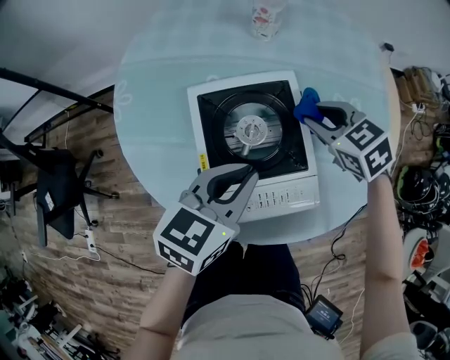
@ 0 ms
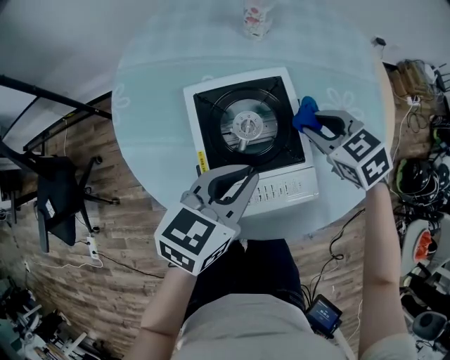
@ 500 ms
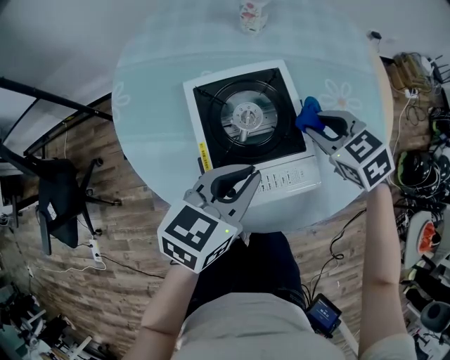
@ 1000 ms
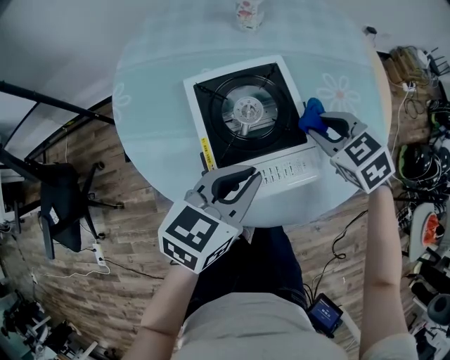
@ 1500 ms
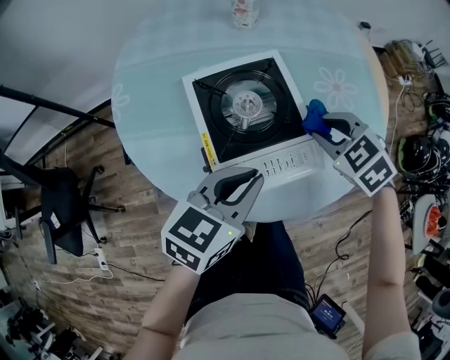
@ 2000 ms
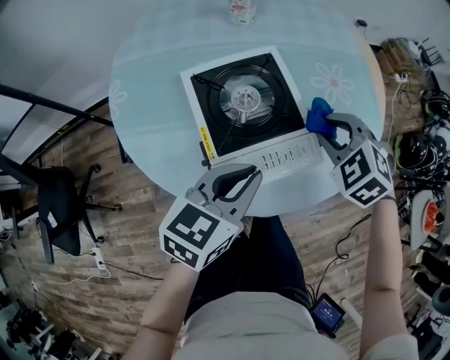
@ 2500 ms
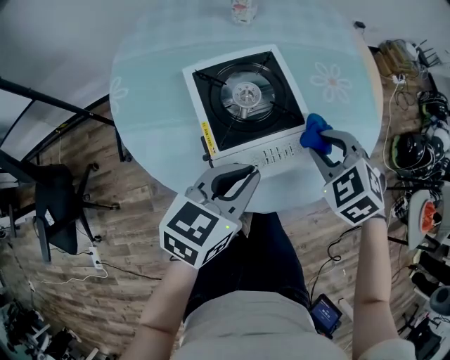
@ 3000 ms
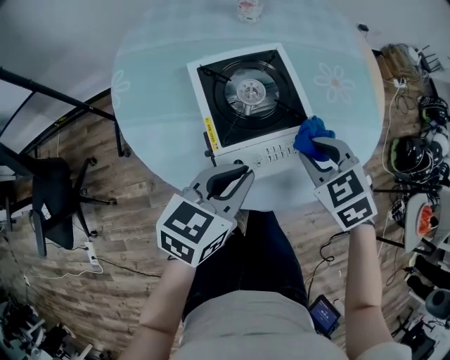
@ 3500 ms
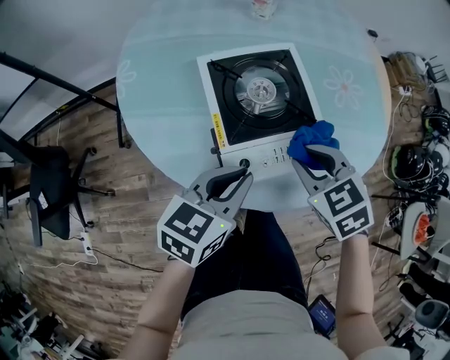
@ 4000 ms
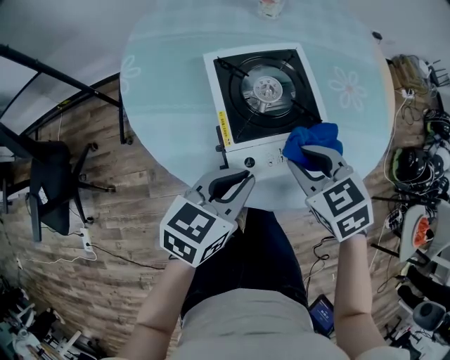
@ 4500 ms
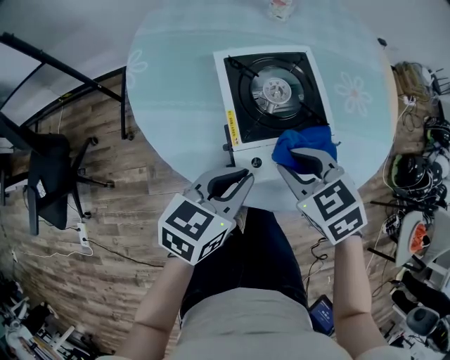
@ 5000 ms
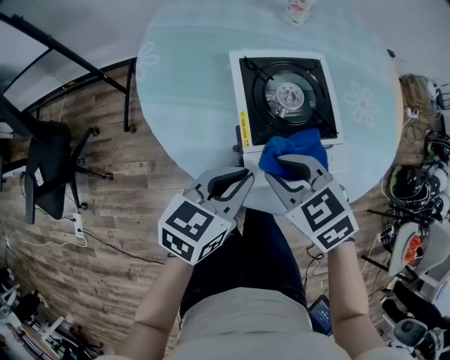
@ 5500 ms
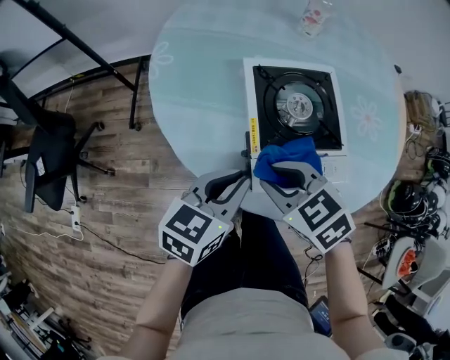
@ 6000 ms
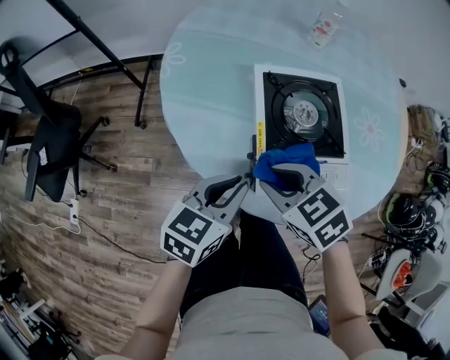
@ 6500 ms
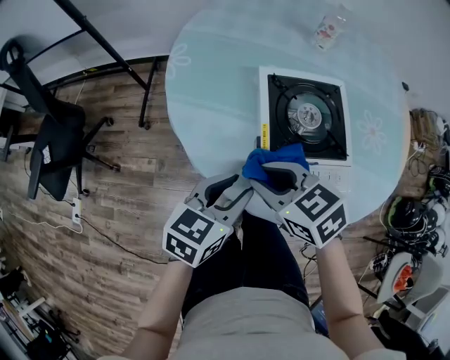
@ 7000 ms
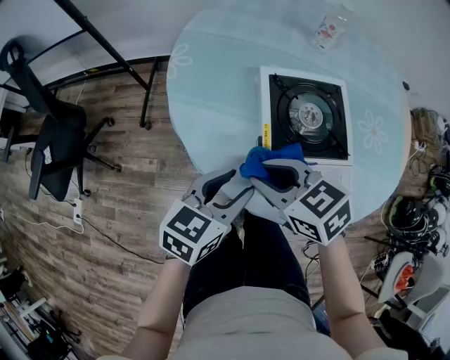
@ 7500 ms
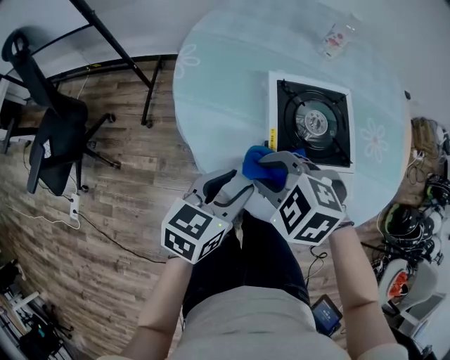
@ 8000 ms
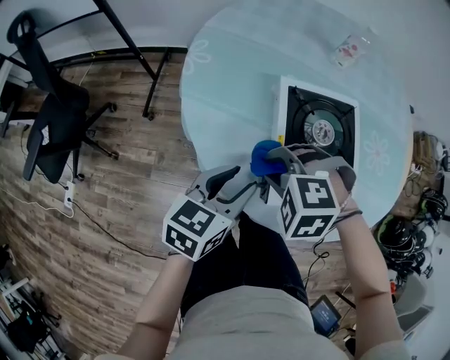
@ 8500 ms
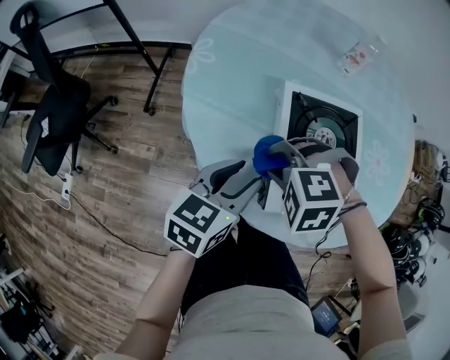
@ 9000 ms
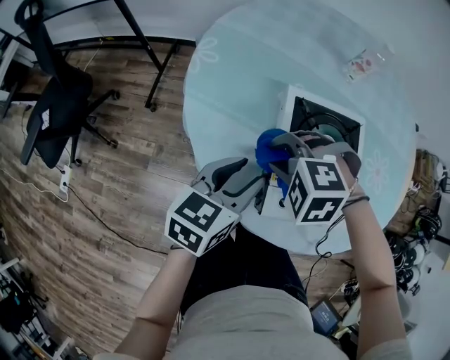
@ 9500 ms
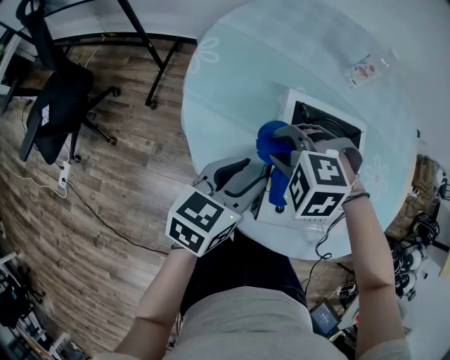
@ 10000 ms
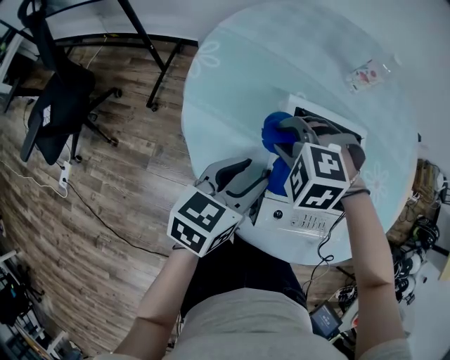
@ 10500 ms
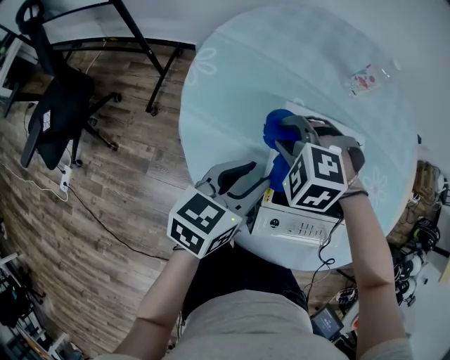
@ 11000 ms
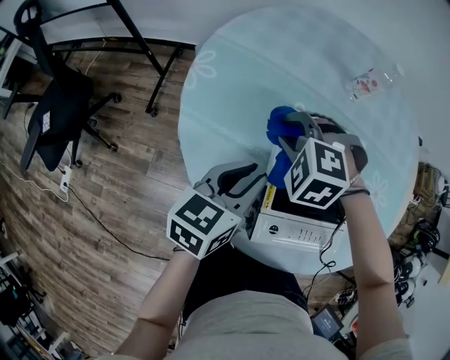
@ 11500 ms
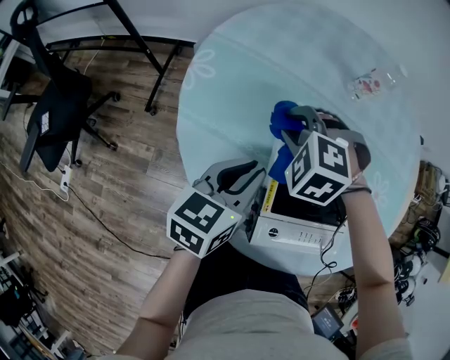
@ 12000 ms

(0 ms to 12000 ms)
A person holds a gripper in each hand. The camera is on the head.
0 ms - 2000 ms: The grippers both shift backward by approximately 10 cm.
2000 ms - 4000 ms: The right gripper goes about 10 cm backward and to the left. The left gripper moves about 5 cm.
4000 ms - 6000 ms: The right gripper moves to the left, some 15 cm, and rotates approximately 20 degrees, while the left gripper is displaced to the left by approximately 5 cm.
6000 ms - 8000 ms: The left gripper opens its fingers. Meanwhile the right gripper travels to the left by roughly 5 cm, and rotates about 30 degrees.
8000 ms - 10000 ms: Both grippers move forward, some 10 cm. The right gripper rotates roughly 30 degrees.
10000 ms - 12000 ms: The left gripper shifts about 5 cm forward, and closes up, while the right gripper moves forward, some 10 cm.

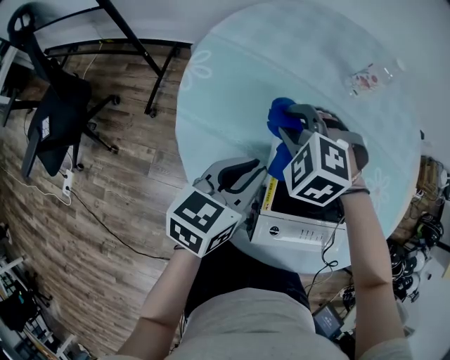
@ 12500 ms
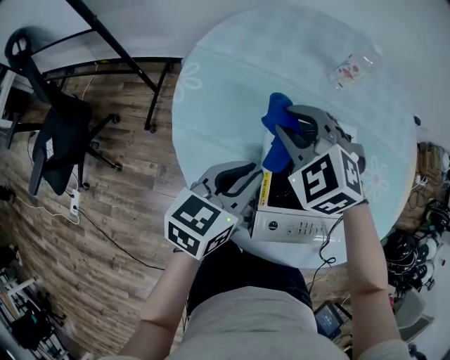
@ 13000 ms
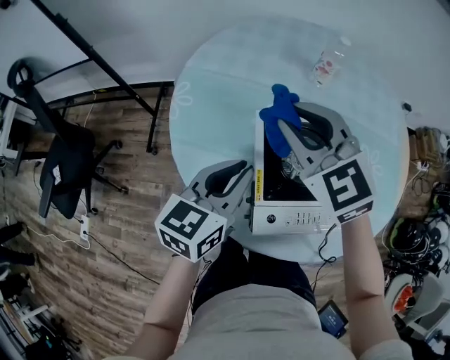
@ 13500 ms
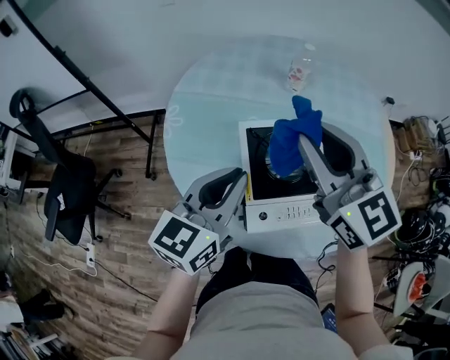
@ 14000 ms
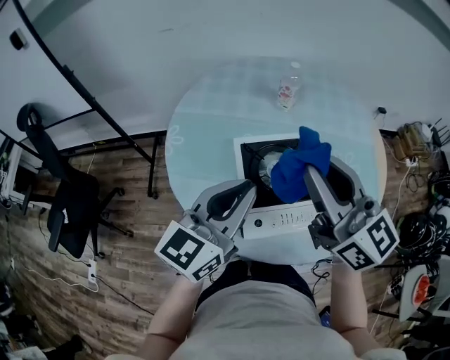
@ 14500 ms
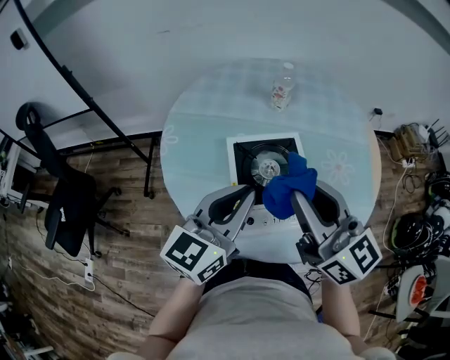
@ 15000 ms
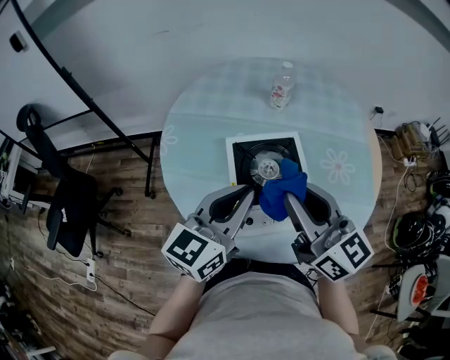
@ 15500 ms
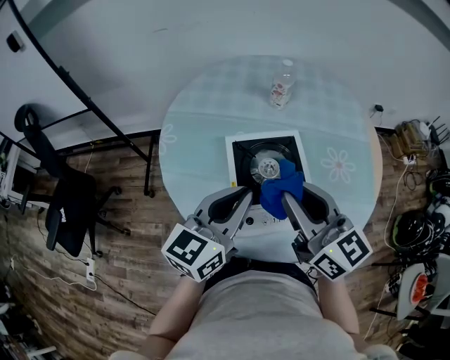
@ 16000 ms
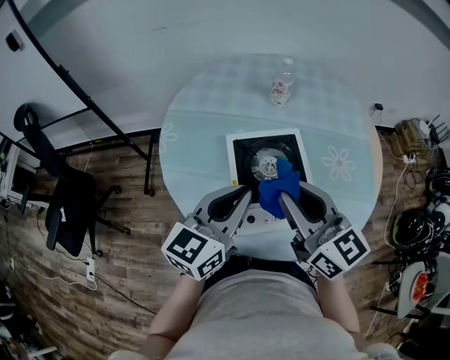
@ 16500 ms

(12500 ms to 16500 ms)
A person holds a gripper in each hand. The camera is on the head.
12500 ms - 14500 ms: The left gripper goes about 20 cm upward and backward, and changes its angle by some 30 degrees; the right gripper heads upward, backward and to the right, covering roughly 35 cm, and tips its fingers upward by roughly 70 degrees.
14500 ms - 16500 ms: The right gripper is displaced downward by roughly 10 cm.

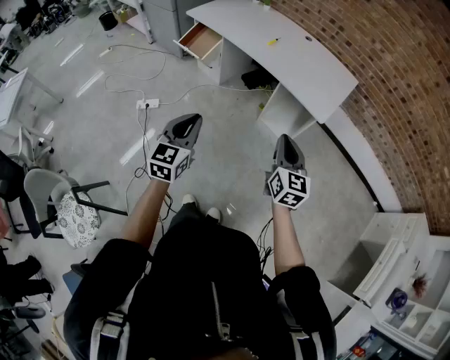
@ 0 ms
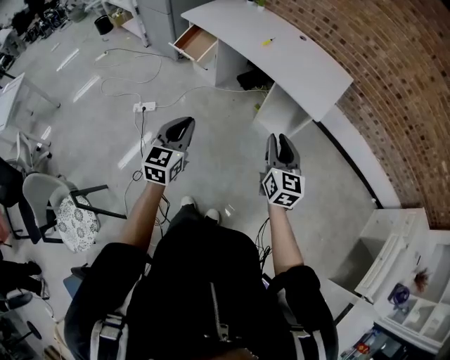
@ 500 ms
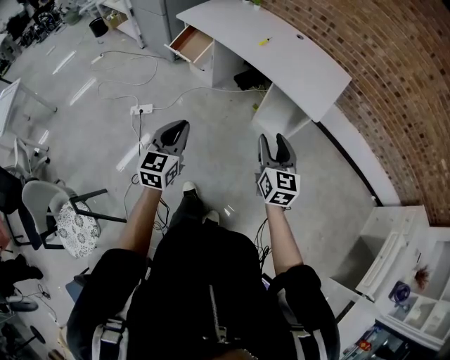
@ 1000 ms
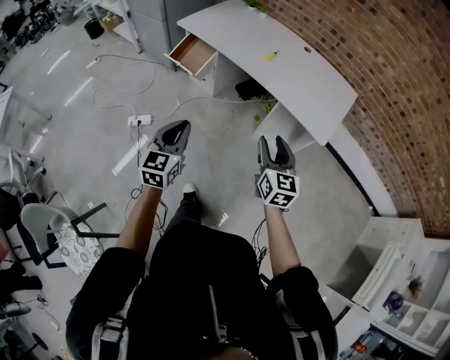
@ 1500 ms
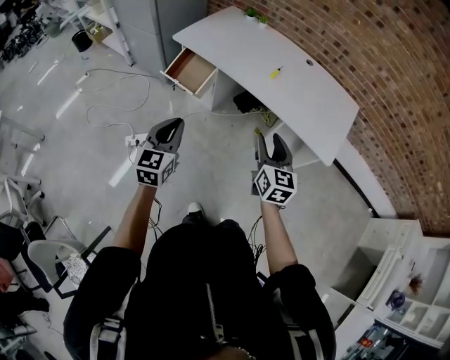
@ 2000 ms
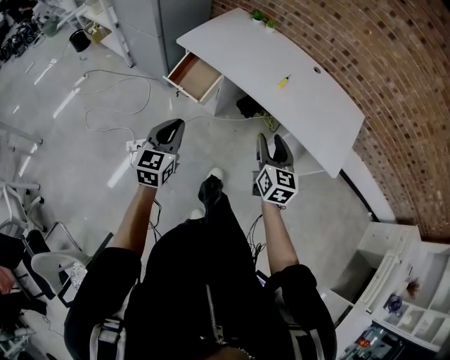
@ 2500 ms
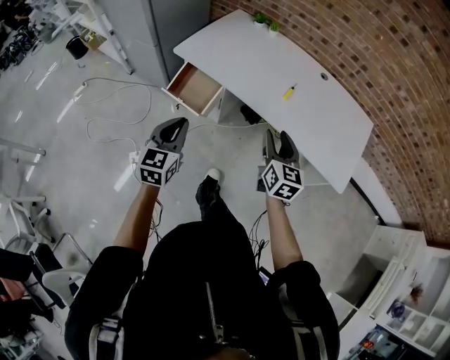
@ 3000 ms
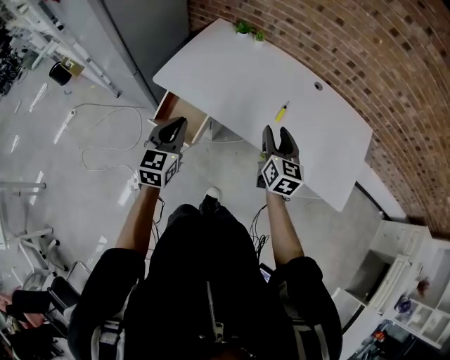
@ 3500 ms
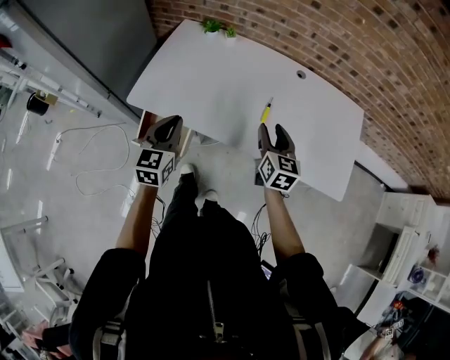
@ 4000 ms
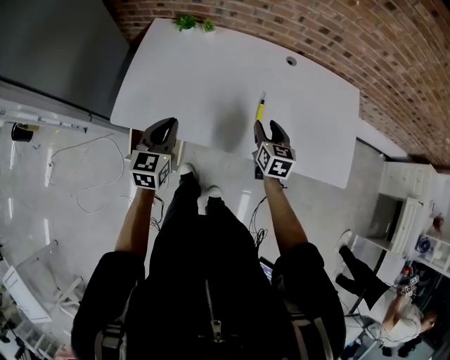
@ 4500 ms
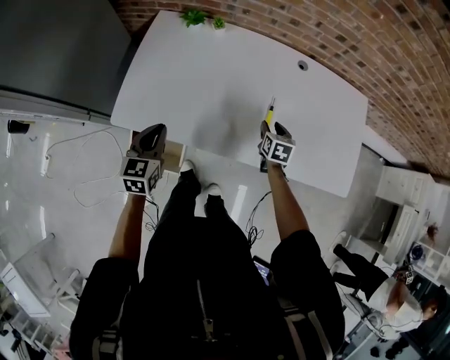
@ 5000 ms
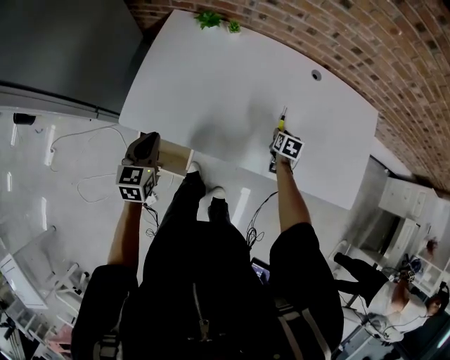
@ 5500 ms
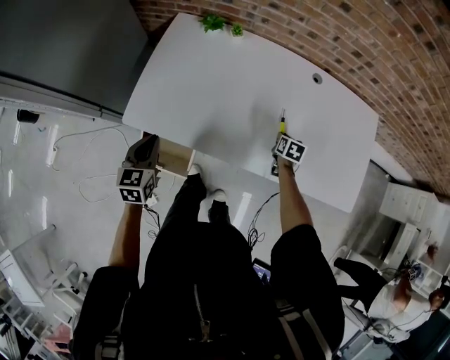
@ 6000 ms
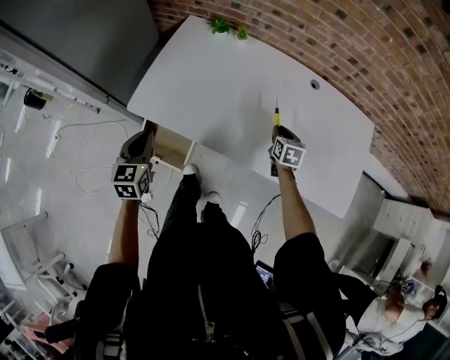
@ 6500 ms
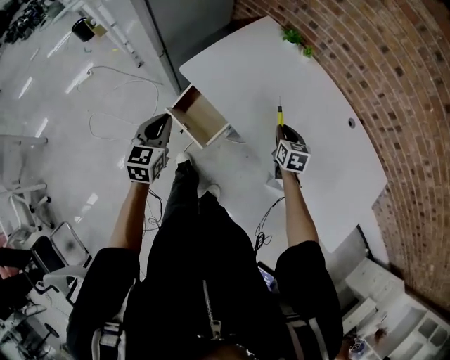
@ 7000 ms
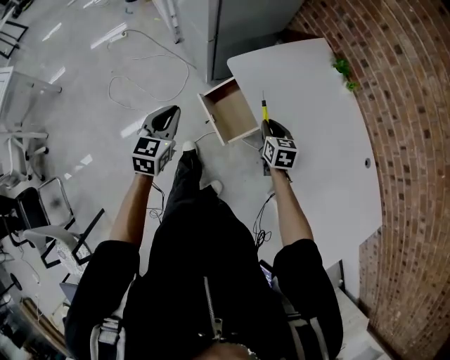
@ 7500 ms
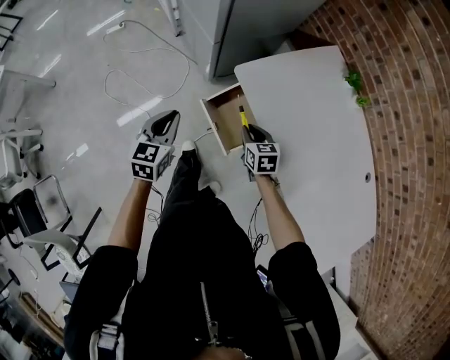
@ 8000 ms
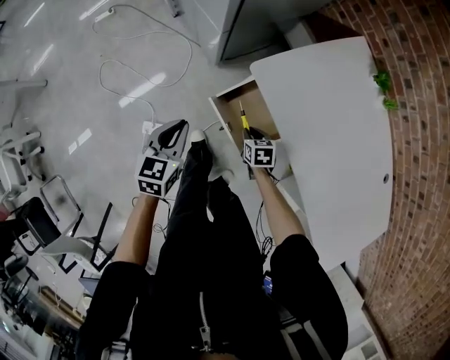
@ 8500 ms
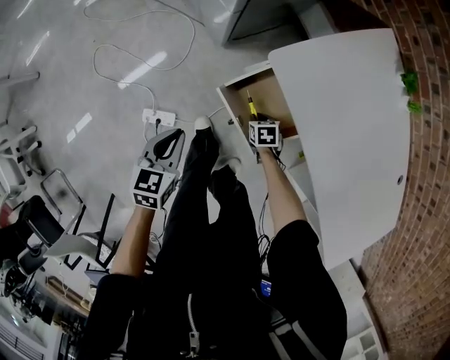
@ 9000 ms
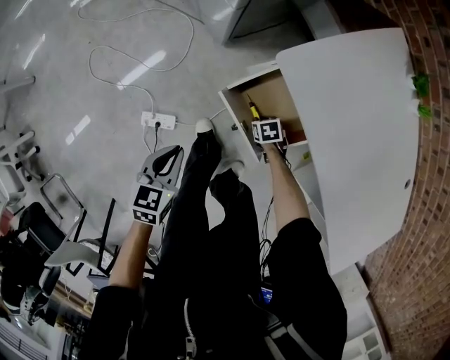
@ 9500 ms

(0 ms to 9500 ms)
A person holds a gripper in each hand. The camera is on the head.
0 ms - 2000 ms: The grippers both shift forward and to the left by approximately 30 cm. The right gripper opens up.
2000 ms - 4000 ms: Both grippers travel together forward, about 40 cm.
4000 ms - 5500 ms: The left gripper heads to the left, downward and forward, covering about 15 cm. The right gripper goes roughly 30 cm downward and forward, and tips its fingers downward by approximately 40 degrees.
5500 ms - 7500 ms: The left gripper changes place by approximately 30 cm, and turns by approximately 40 degrees, while the right gripper shifts by about 40 cm, and swivels roughly 70 degrees.
7500 ms - 9500 ms: The right gripper heads downward, covering roughly 35 cm, and angles its fingers downward, by roughly 40 degrees. Meanwhile the left gripper moves downward, roughly 25 cm, and changes its angle by some 30 degrees.

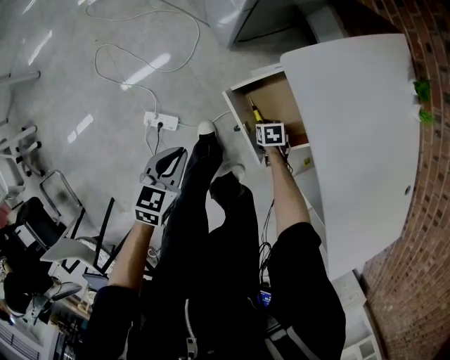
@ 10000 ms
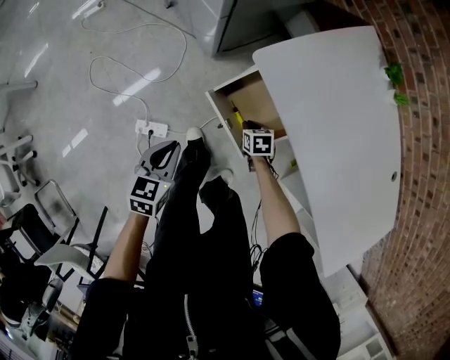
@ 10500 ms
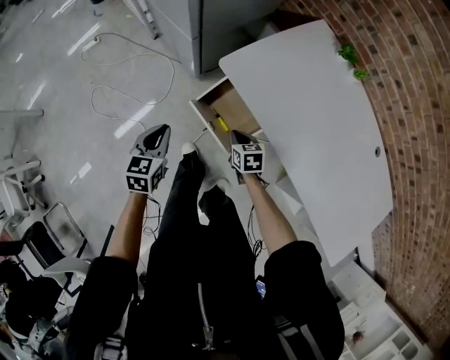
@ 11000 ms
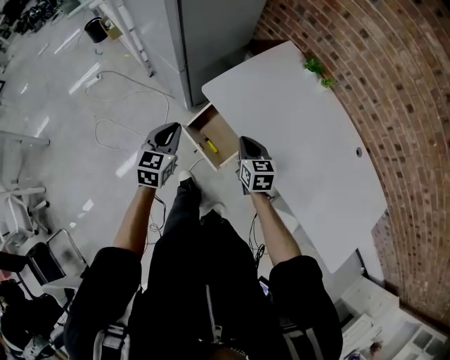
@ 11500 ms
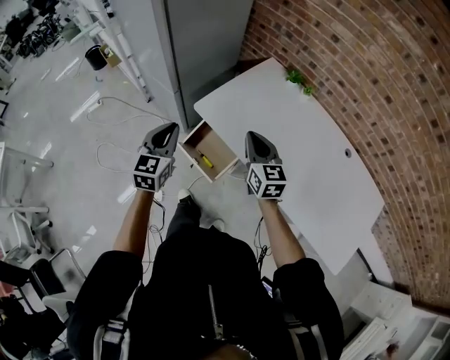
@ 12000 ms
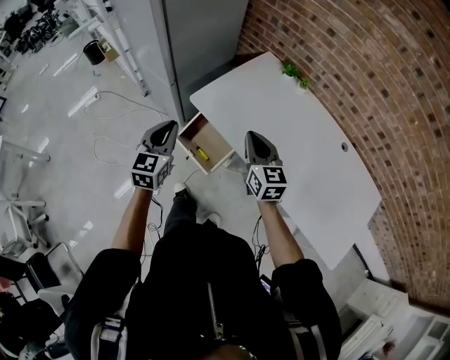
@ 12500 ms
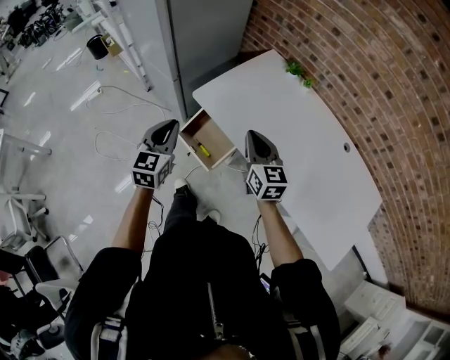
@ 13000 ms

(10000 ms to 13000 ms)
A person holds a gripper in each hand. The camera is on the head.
10000 ms - 11500 ms: The right gripper goes approximately 40 cm upward, and angles its fingers upward, by some 50 degrees, while the left gripper heads upward, covering roughly 25 cm, and changes its angle by approximately 30 degrees.
11500 ms - 13000 ms: The left gripper goes roughly 10 cm upward; the right gripper moves upward, approximately 15 cm.
